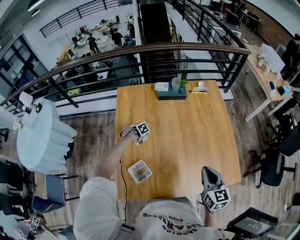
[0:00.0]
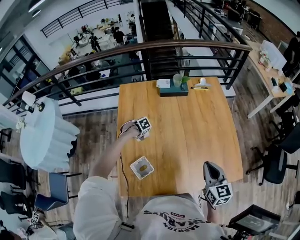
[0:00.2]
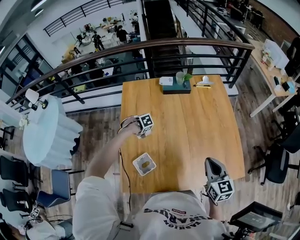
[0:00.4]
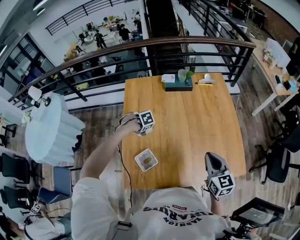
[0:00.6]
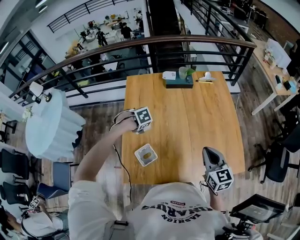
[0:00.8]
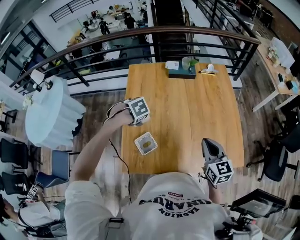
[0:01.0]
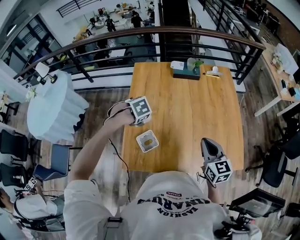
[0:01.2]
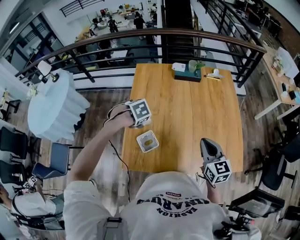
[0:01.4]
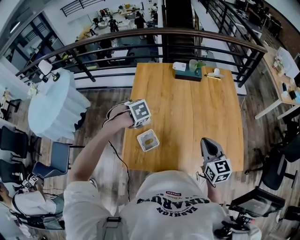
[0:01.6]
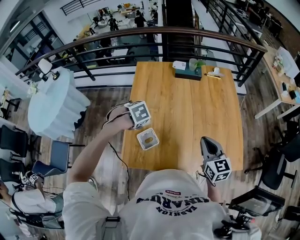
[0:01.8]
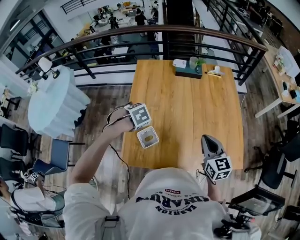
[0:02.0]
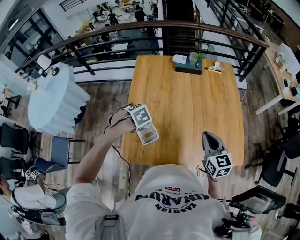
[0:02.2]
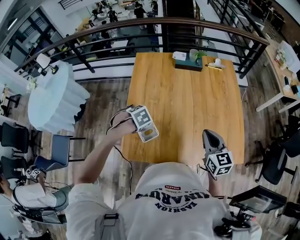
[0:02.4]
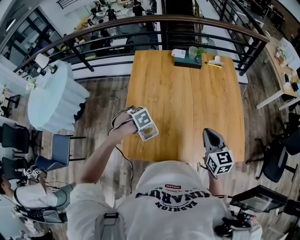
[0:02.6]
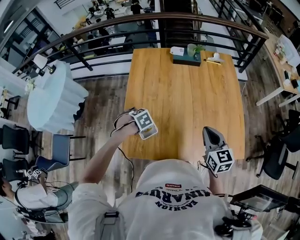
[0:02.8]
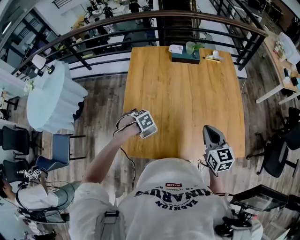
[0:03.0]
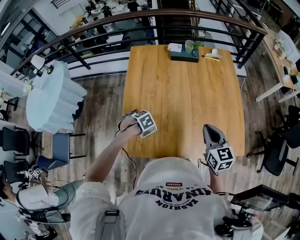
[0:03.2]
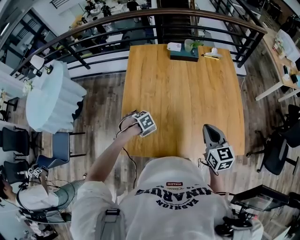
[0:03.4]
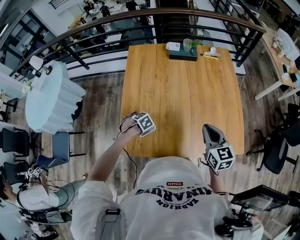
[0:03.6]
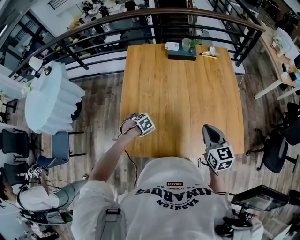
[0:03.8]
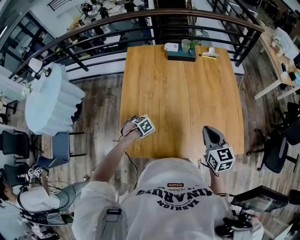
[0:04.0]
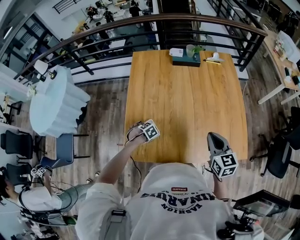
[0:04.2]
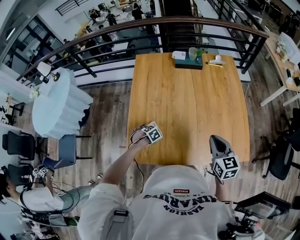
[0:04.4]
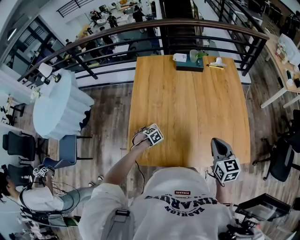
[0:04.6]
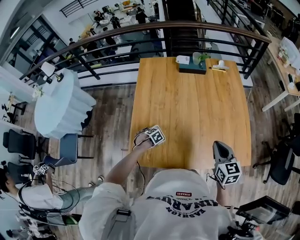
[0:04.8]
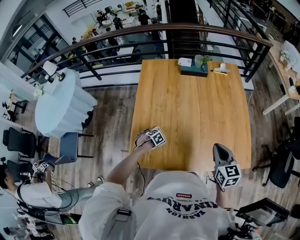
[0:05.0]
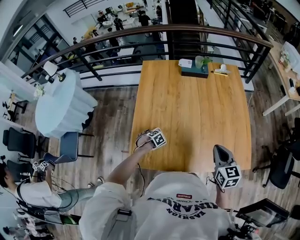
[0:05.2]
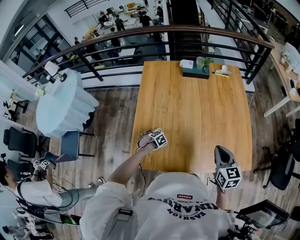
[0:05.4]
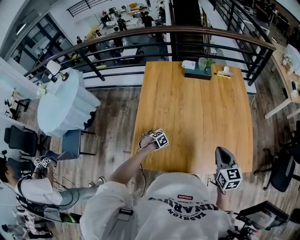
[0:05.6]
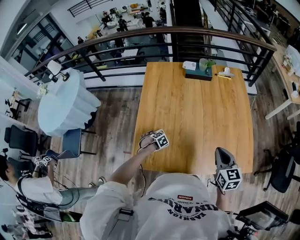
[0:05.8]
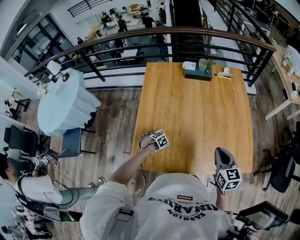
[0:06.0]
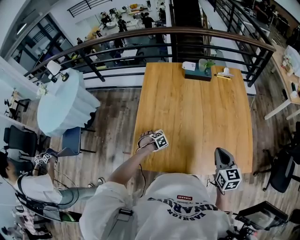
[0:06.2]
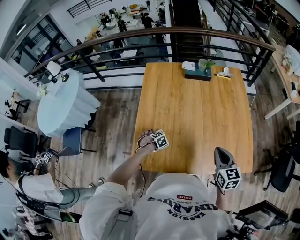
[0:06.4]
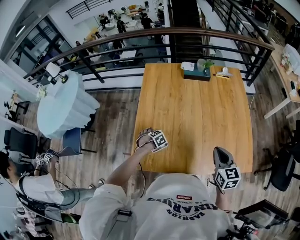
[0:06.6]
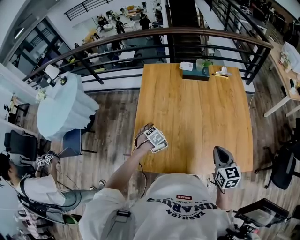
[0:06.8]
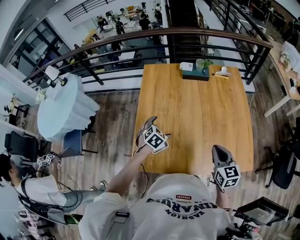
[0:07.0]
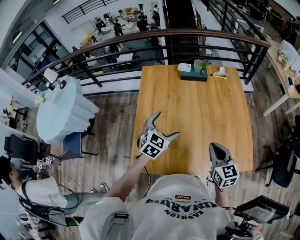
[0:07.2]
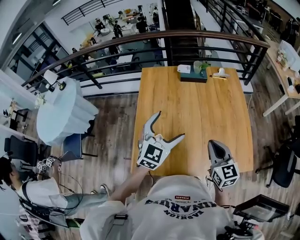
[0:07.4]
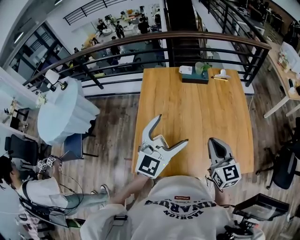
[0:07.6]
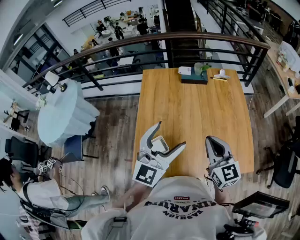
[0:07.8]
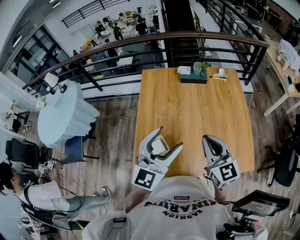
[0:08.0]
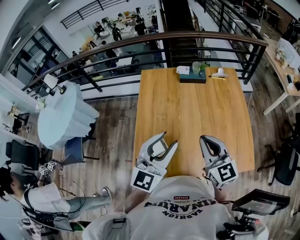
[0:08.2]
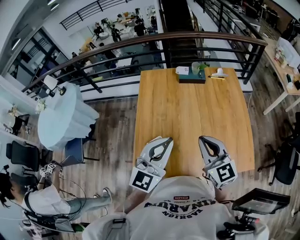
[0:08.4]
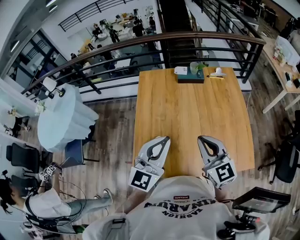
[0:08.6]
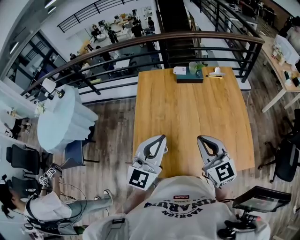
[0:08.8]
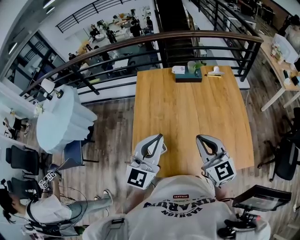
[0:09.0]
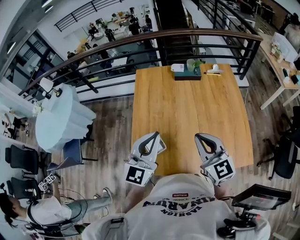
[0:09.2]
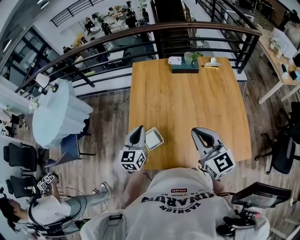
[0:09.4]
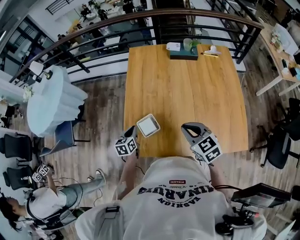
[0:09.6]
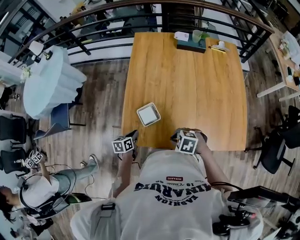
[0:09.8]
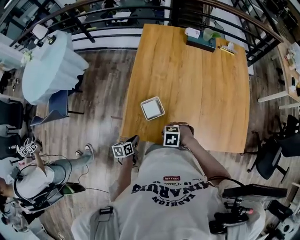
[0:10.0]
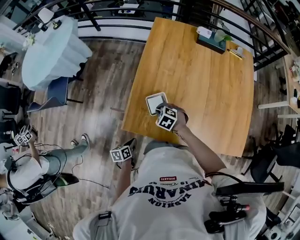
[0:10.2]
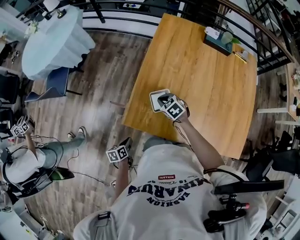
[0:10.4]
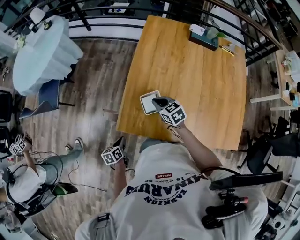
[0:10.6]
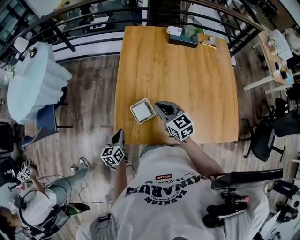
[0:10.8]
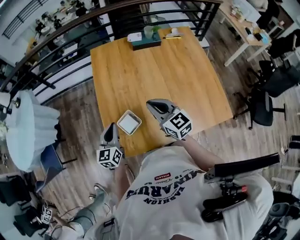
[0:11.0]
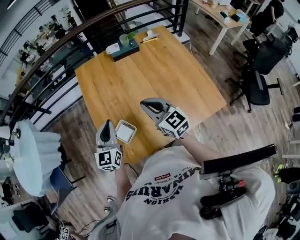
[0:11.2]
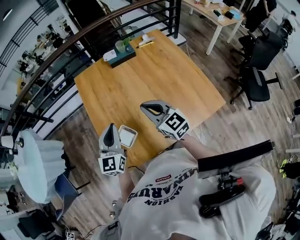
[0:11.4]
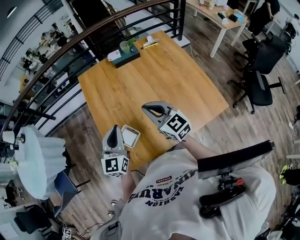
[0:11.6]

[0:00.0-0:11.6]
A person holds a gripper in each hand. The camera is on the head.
0:00.0 to 0:01.4: The left gripper shifts about 25 cm upward; the right gripper shifts by about 5 cm.
0:01.4 to 0:02.8: The left gripper travels downward by approximately 10 cm.
0:02.8 to 0:04.4: The left gripper moves downward, about 15 cm.
0:04.4 to 0:05.8: The grippers move only a little.
0:05.8 to 0:07.2: The left gripper travels upward by roughly 35 cm, and tips its fingers upward by approximately 50 degrees, while the right gripper changes place by some 5 cm.
0:07.2 to 0:08.8: The left gripper travels upward and backward by approximately 20 cm, tilts its fingers roughly 40 degrees upward, and closes its fingers, while the right gripper shifts some 10 cm upward and to the left, and rotates roughly 20 degrees.
0:08.8 to 0:10.2: The two grippers go roughly 40 cm downward. The right gripper angles its fingers downward, by some 60 degrees. The left gripper tilts its fingers about 50 degrees downward.
0:10.2 to 0:11.6: The two grippers go about 30 cm upward. The right gripper tilts its fingers roughly 50 degrees upward. Meanwhile the left gripper tilts its fingers about 40 degrees upward.

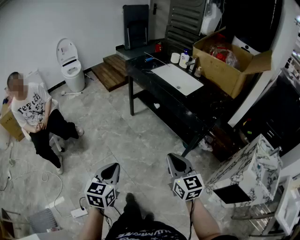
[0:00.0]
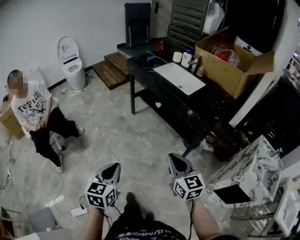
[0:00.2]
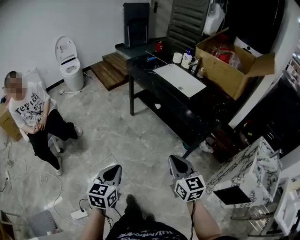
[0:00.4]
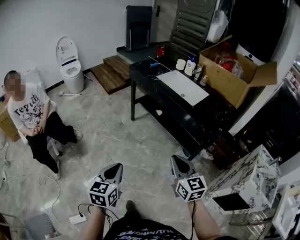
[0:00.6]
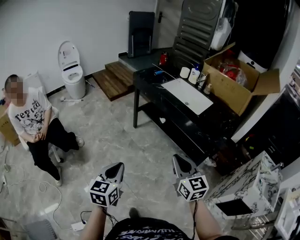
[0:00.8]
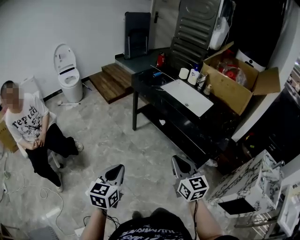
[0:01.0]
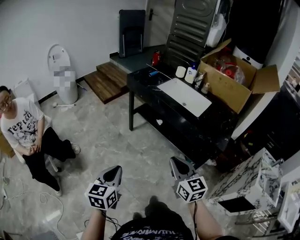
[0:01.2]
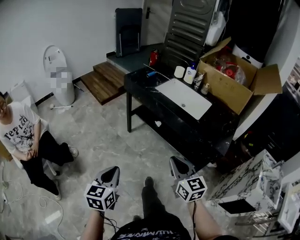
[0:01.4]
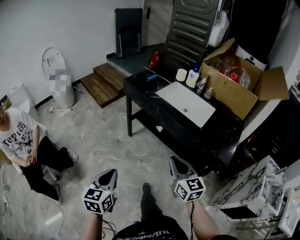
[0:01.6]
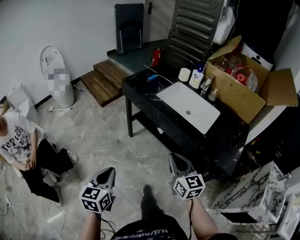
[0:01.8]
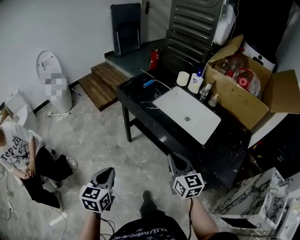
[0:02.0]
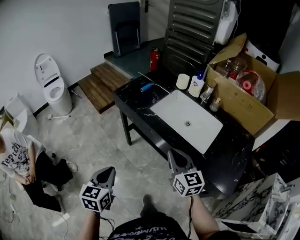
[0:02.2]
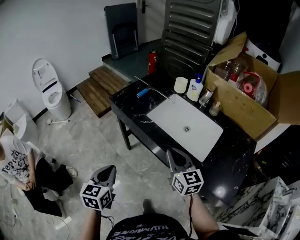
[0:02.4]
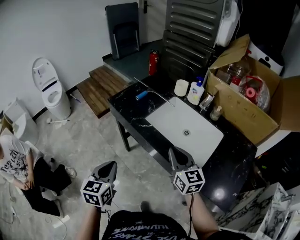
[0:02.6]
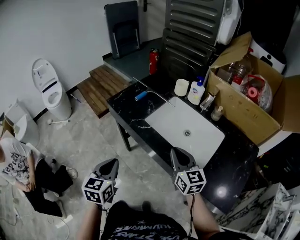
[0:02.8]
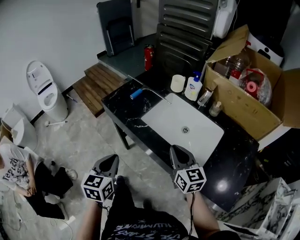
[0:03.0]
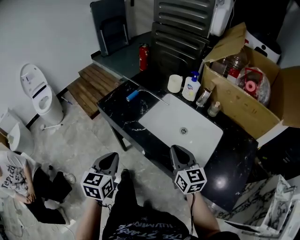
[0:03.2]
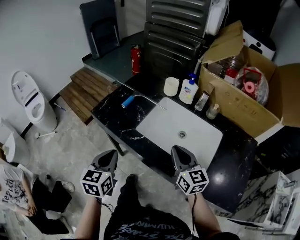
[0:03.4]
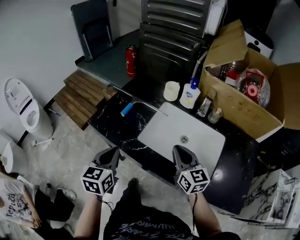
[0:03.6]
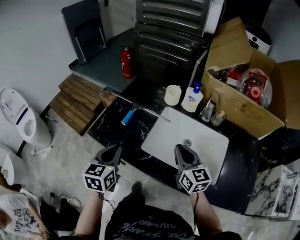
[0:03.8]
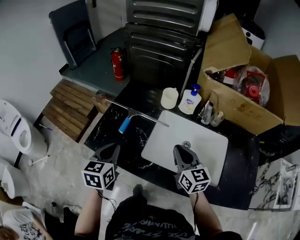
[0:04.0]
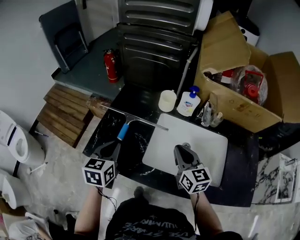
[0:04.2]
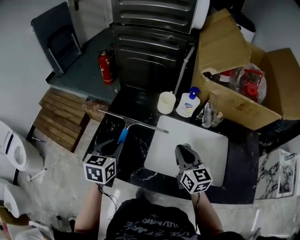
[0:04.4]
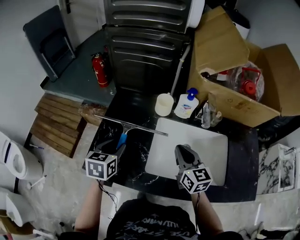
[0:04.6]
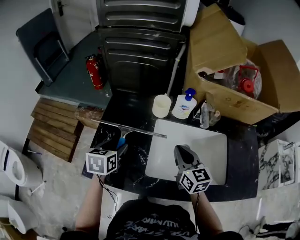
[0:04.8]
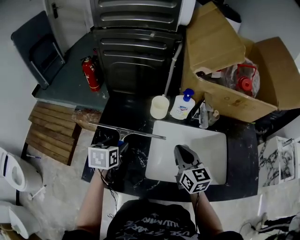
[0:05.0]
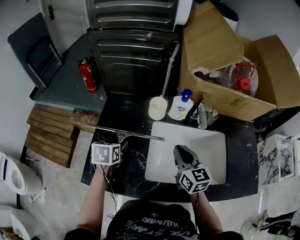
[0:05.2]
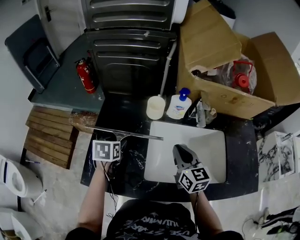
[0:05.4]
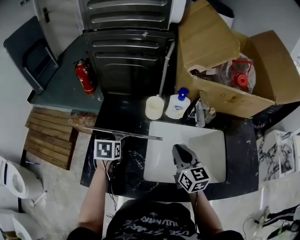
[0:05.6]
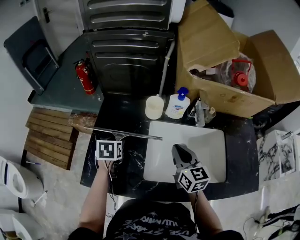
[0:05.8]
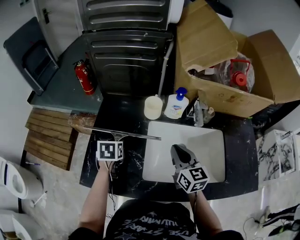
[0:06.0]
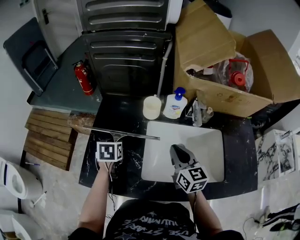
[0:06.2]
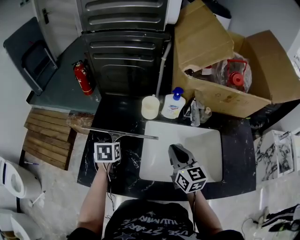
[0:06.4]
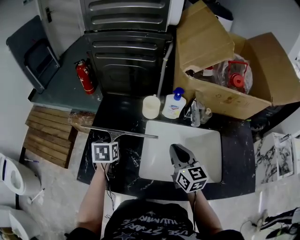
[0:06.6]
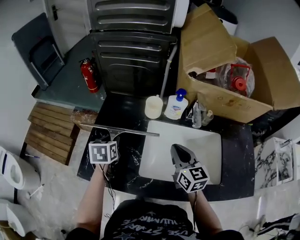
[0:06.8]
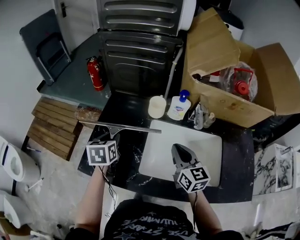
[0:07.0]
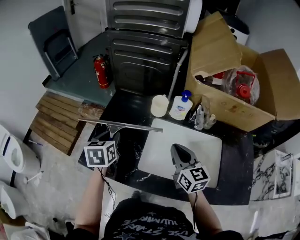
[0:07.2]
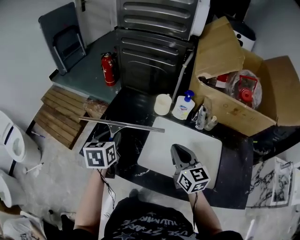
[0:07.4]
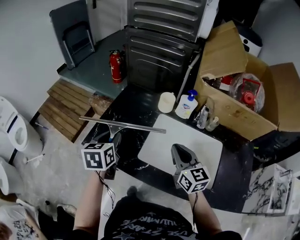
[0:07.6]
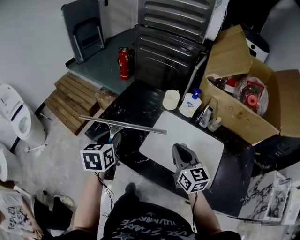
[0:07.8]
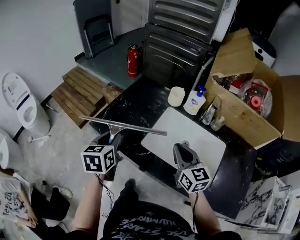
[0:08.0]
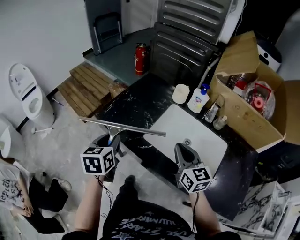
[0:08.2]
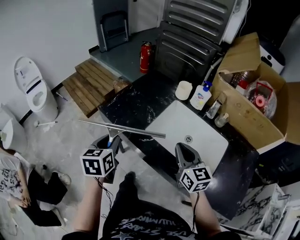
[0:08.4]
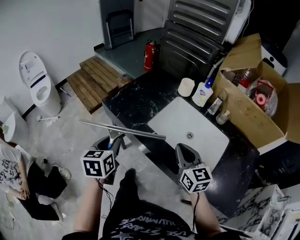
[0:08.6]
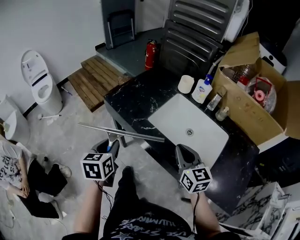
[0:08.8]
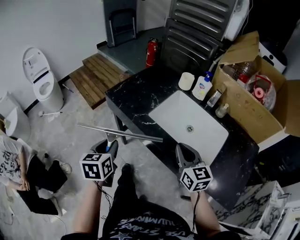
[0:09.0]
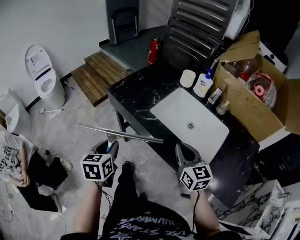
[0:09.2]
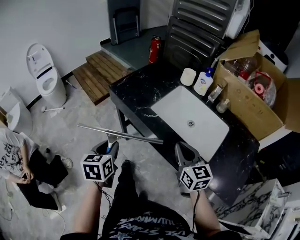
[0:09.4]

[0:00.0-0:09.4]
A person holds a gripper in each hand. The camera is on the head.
0:00.0 to 0:01.6: Both grippers move forward, some 30 cm.
0:01.6 to 0:03.2: The pair of grippers is taken forward, about 40 cm.
0:03.2 to 0:04.8: The right gripper ends up approximately 25 cm from where it was, and changes its angle by some 30 degrees. The left gripper changes place by some 40 cm, swivels approximately 30 degrees, and opens its fingers.
0:04.8 to 0:06.2: The left gripper goes some 10 cm downward and forward, and closes its fingers.
0:06.2 to 0:07.8: The right gripper moves backward, about 10 cm, and rotates roughly 20 degrees. Meanwhile the left gripper goes some 25 cm backward and upward, and rotates approximately 30 degrees.
0:07.8 to 0:09.4: Both grippers travel together backward, about 25 cm.

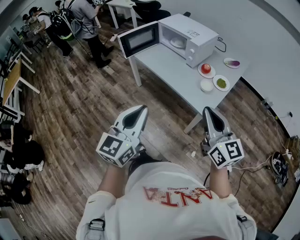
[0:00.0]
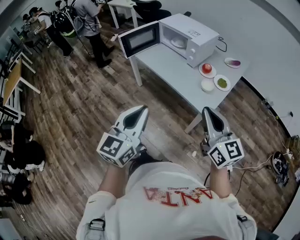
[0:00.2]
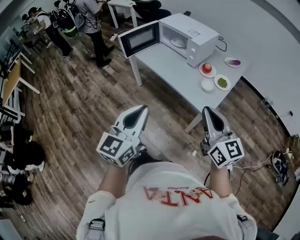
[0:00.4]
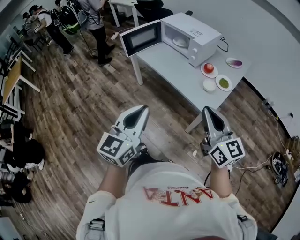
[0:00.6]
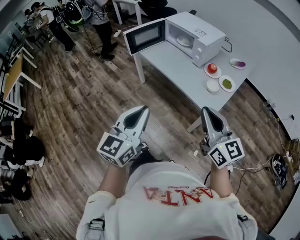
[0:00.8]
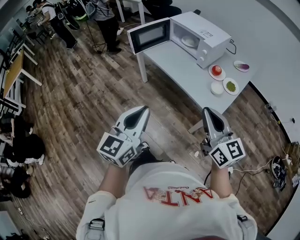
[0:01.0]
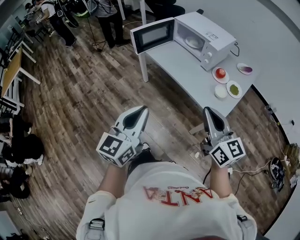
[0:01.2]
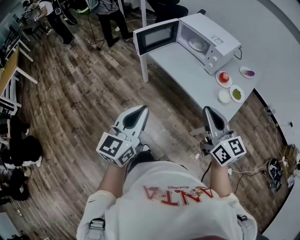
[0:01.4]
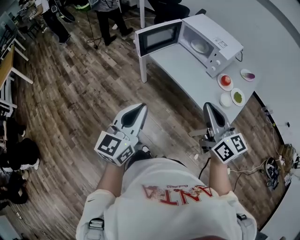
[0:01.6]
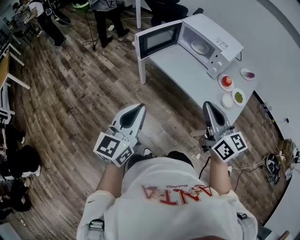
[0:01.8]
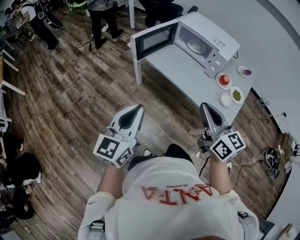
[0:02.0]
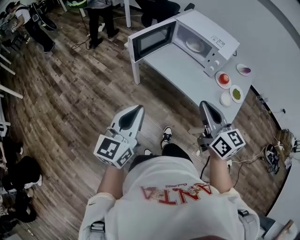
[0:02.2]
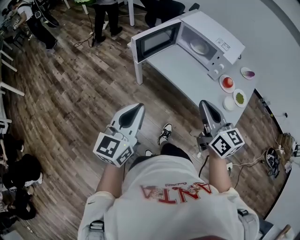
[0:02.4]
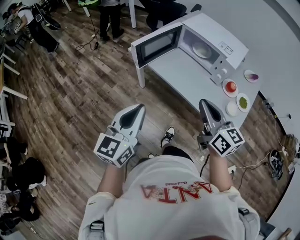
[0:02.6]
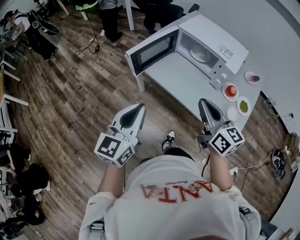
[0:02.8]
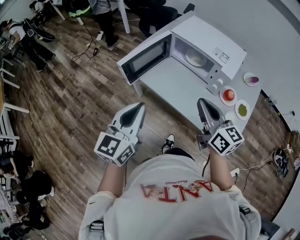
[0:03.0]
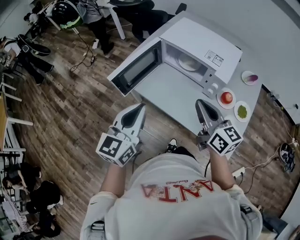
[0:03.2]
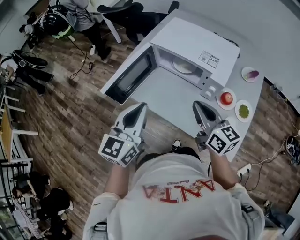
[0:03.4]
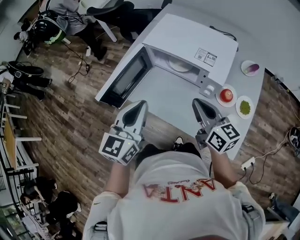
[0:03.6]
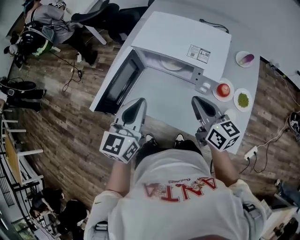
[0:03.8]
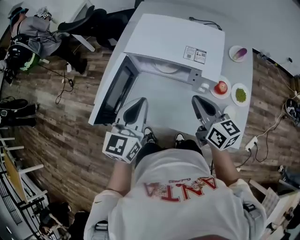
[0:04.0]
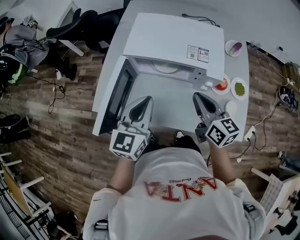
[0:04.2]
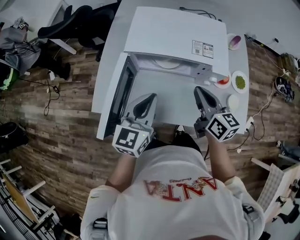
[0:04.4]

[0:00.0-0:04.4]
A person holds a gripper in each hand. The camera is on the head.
0:00.0 to 0:01.4: The grippers both shift to the left and forward by about 15 cm.
0:01.4 to 0:03.0: The two grippers go roughly 30 cm forward.
0:03.0 to 0:04.4: The left gripper changes place by about 30 cm, and rotates roughly 30 degrees, while the right gripper moves some 20 cm, and swivels about 40 degrees.
